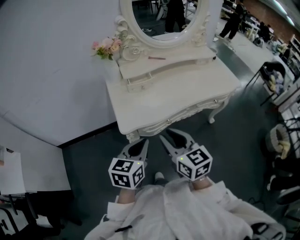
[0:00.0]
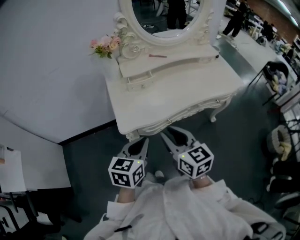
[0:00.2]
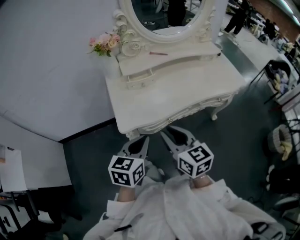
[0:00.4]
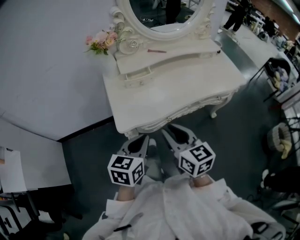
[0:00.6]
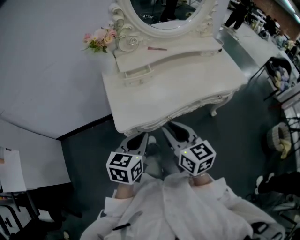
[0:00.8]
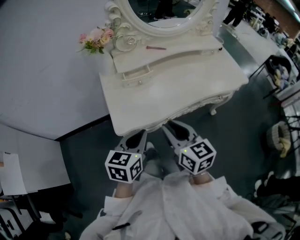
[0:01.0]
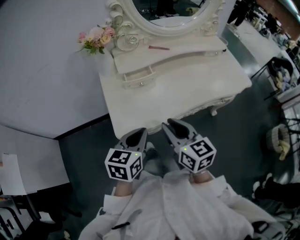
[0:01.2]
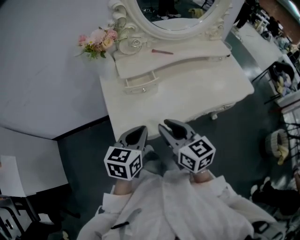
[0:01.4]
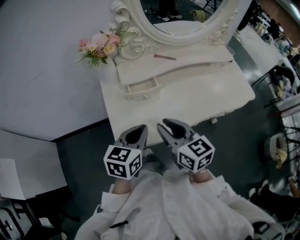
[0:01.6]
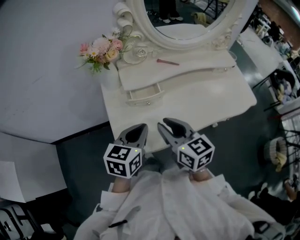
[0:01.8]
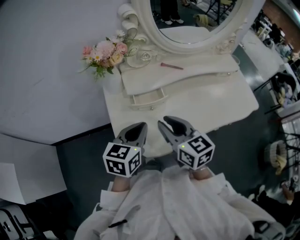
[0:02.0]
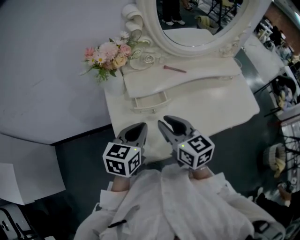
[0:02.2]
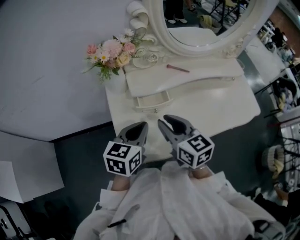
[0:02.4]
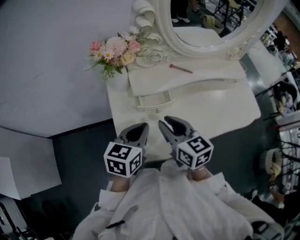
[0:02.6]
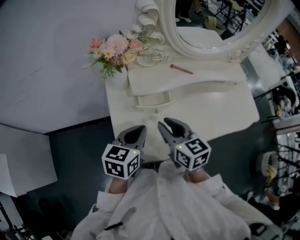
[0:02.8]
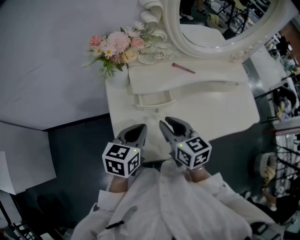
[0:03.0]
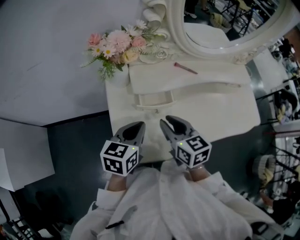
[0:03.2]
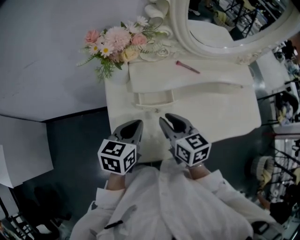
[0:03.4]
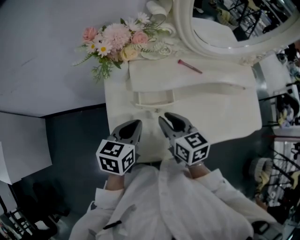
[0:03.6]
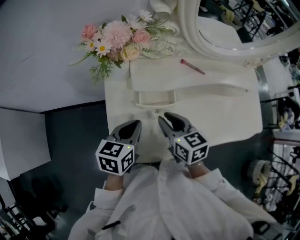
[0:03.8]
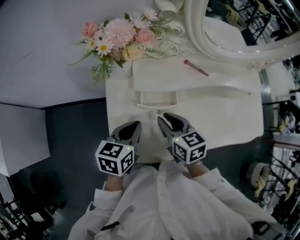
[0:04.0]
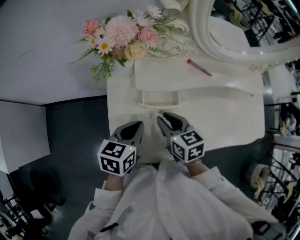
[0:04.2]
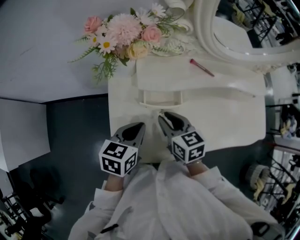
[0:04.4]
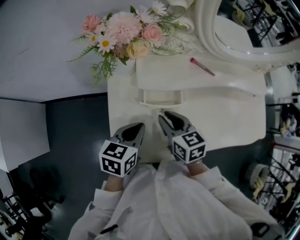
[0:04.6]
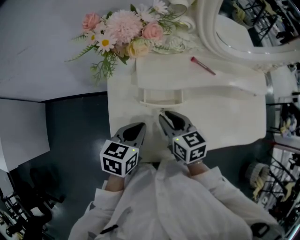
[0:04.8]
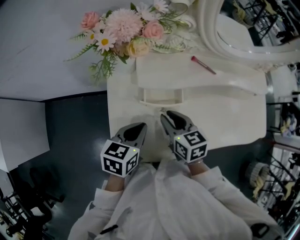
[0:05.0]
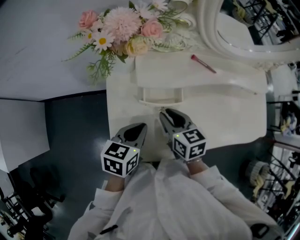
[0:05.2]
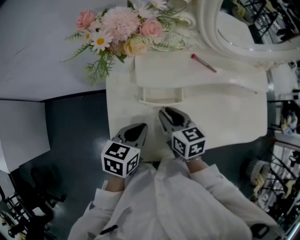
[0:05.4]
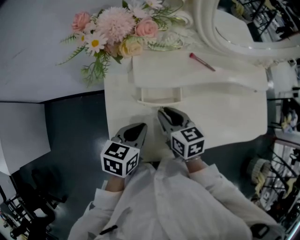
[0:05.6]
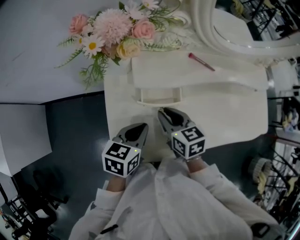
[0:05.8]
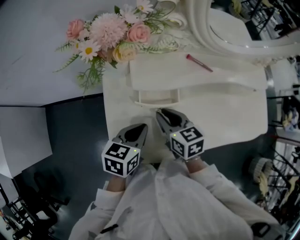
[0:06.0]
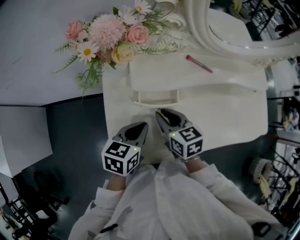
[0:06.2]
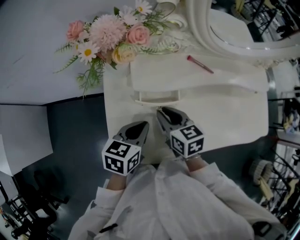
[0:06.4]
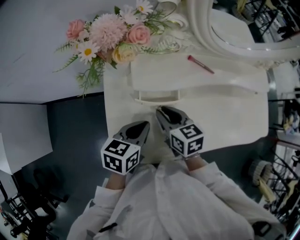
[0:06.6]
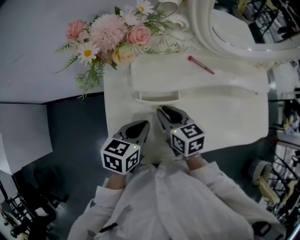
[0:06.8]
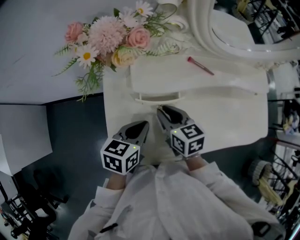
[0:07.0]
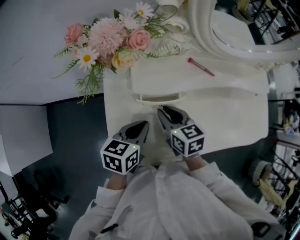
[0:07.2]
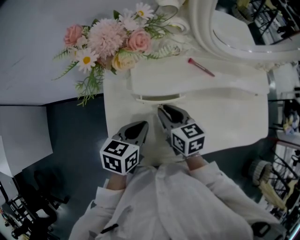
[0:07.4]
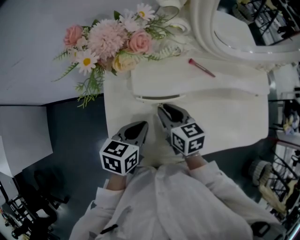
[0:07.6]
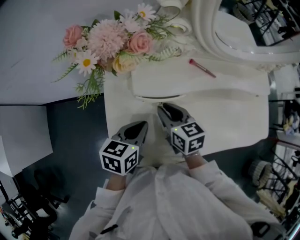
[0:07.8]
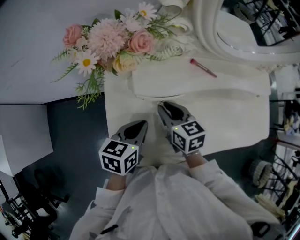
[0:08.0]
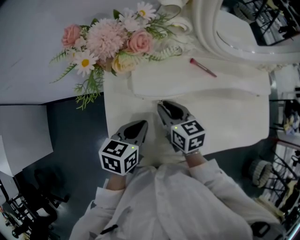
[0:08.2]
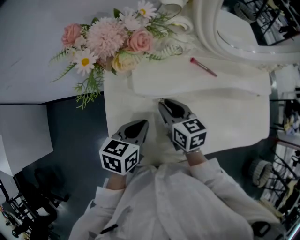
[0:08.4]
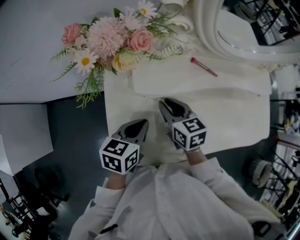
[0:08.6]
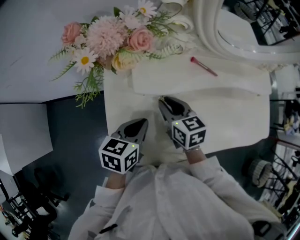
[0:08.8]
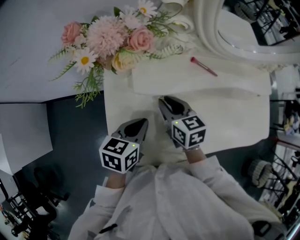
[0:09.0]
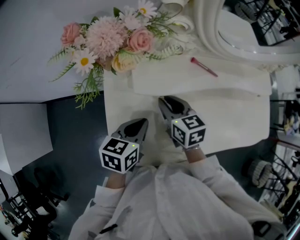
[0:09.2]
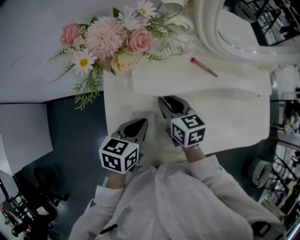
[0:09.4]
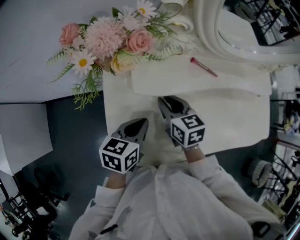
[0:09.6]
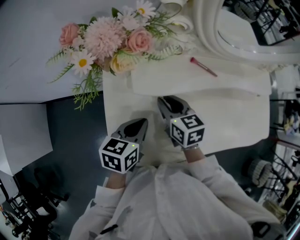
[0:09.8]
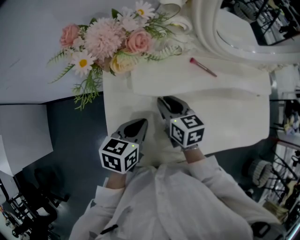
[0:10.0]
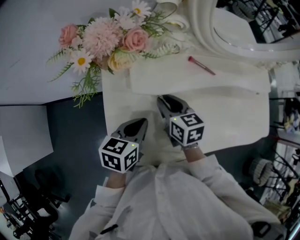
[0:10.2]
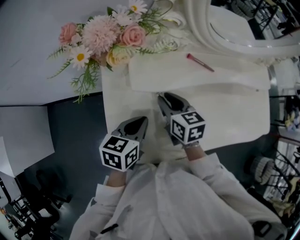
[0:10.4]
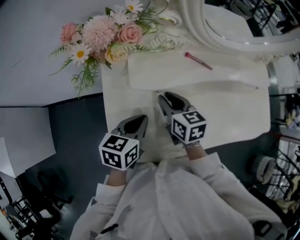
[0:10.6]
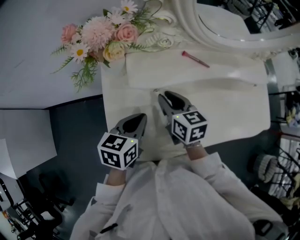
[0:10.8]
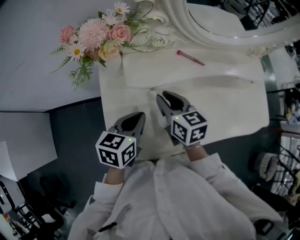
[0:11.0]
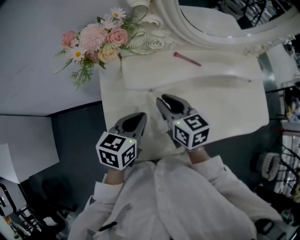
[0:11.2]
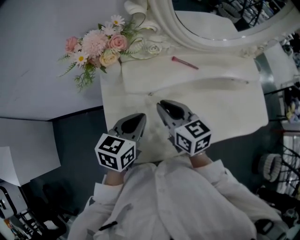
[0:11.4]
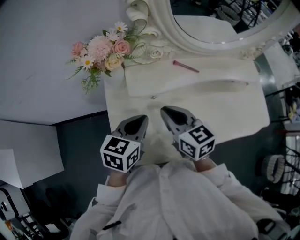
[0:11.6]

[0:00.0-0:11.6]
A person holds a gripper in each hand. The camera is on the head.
0:00.0 to 0:01.4: Both grippers travel together forward, roughly 15 cm.
0:01.4 to 0:02.8: The two grippers go roughly 15 cm forward.
0:02.8 to 0:04.4: The left gripper is displaced downward by roughly 5 cm, while the right gripper shifts some 10 cm downward and forward.
0:04.4 to 0:07.2: The grippers stay close to where they were, moving slightly.
0:07.2 to 0:08.8: There are only small adjustments of the grippers.
0:08.8 to 0:10.2: Both grippers stay about where they are.
0:10.2 to 0:11.6: The left gripper moves upward, some 5 cm, while the right gripper heads upward and backward, covering roughly 10 cm.

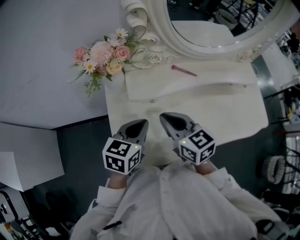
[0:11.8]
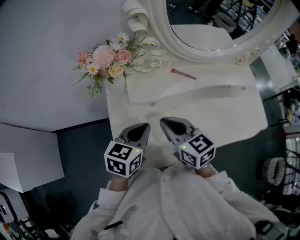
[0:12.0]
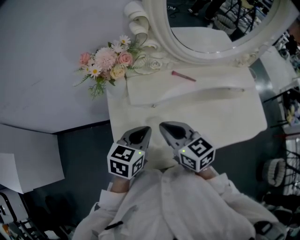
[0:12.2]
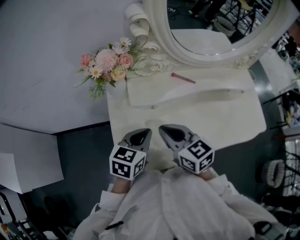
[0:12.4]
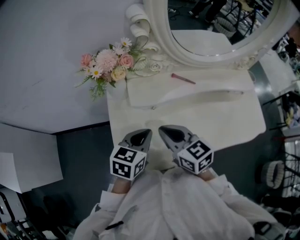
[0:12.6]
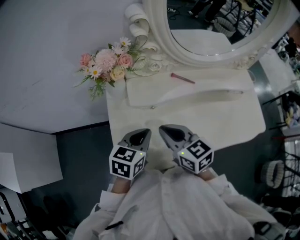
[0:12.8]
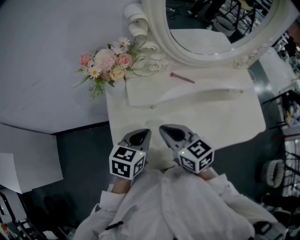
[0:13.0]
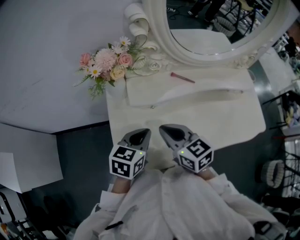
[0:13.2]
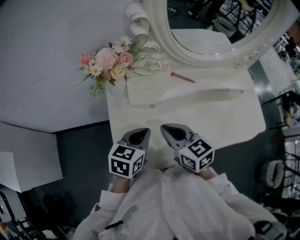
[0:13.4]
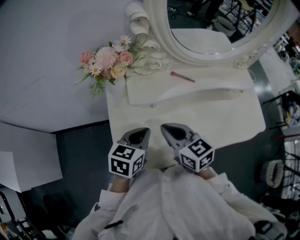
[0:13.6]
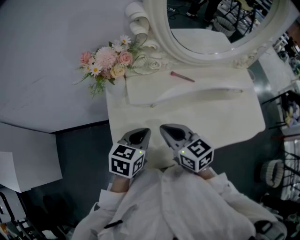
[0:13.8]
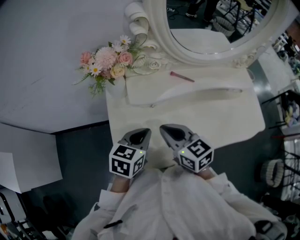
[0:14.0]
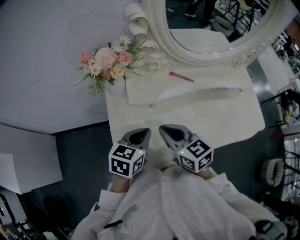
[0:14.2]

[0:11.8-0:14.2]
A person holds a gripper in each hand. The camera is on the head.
0:11.8 to 0:13.0: The grippers make only small movements.
0:13.0 to 0:14.2: The two grippers keep their place.

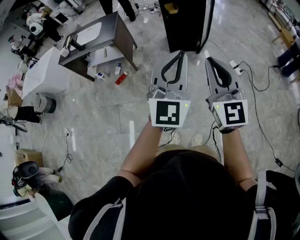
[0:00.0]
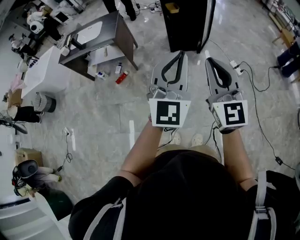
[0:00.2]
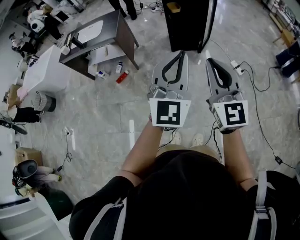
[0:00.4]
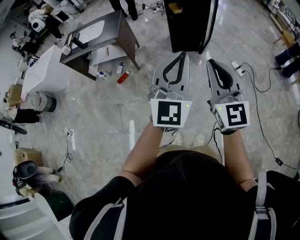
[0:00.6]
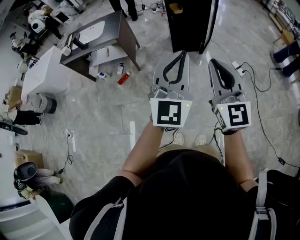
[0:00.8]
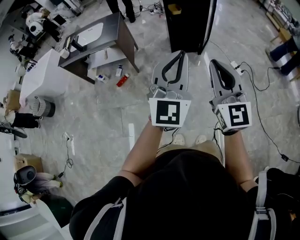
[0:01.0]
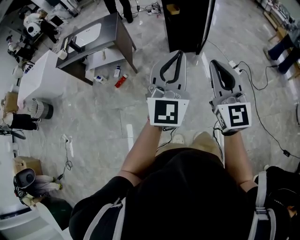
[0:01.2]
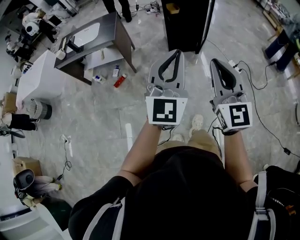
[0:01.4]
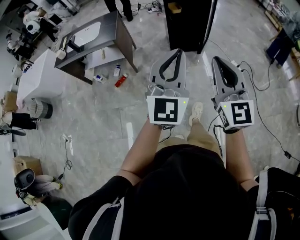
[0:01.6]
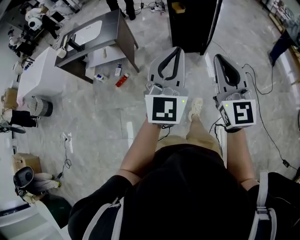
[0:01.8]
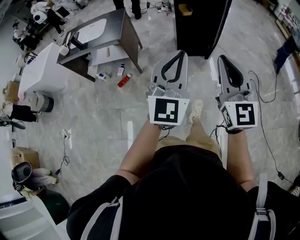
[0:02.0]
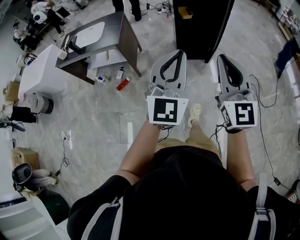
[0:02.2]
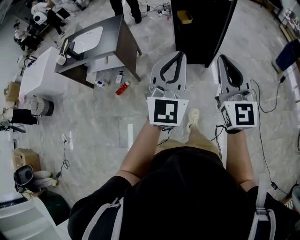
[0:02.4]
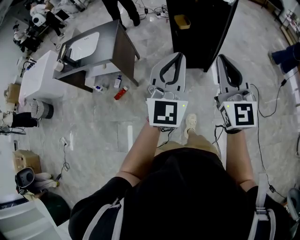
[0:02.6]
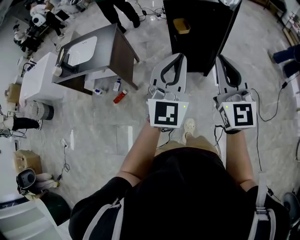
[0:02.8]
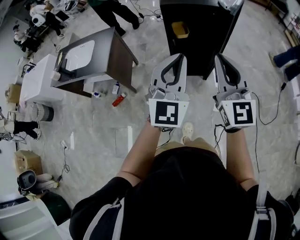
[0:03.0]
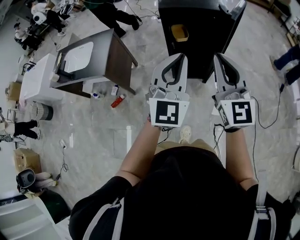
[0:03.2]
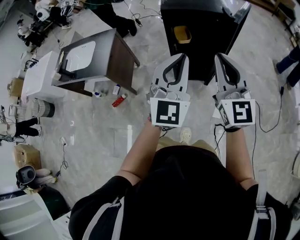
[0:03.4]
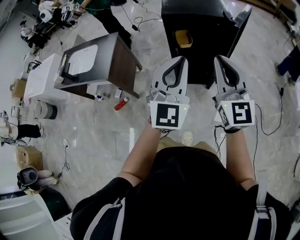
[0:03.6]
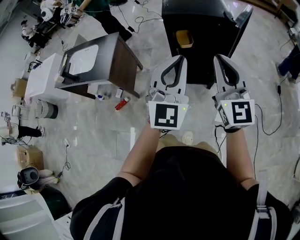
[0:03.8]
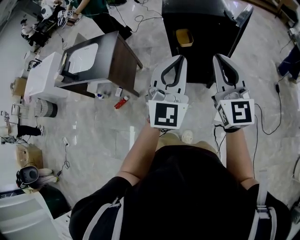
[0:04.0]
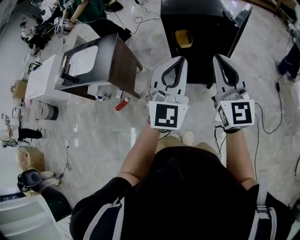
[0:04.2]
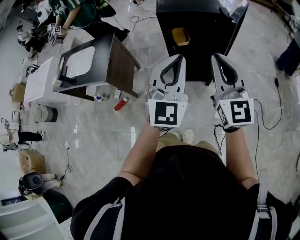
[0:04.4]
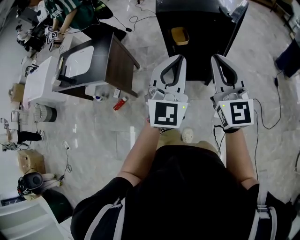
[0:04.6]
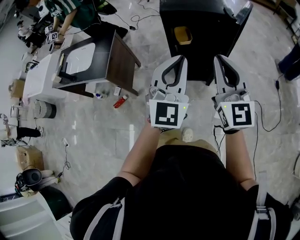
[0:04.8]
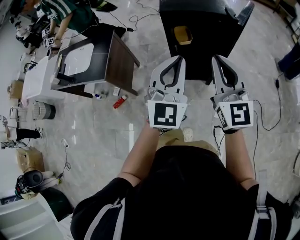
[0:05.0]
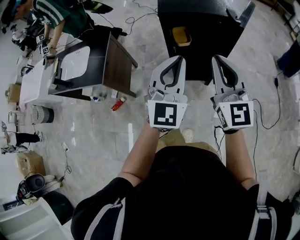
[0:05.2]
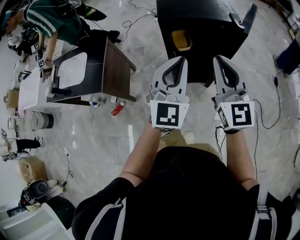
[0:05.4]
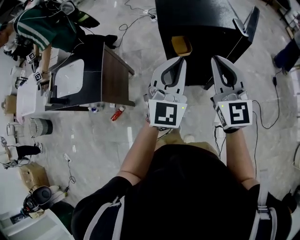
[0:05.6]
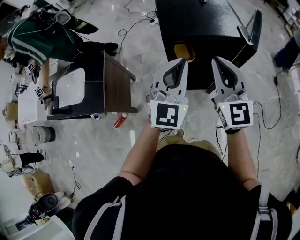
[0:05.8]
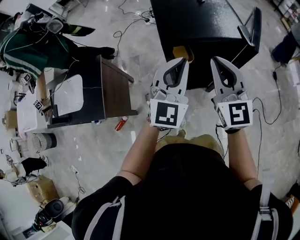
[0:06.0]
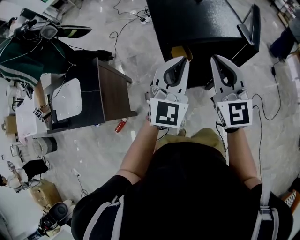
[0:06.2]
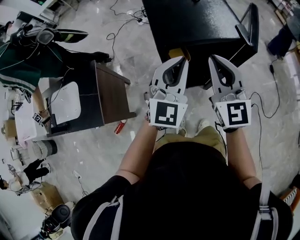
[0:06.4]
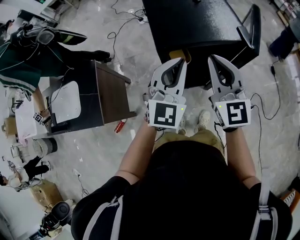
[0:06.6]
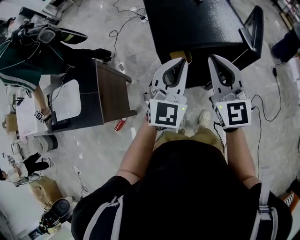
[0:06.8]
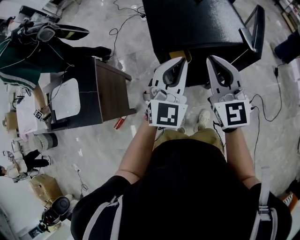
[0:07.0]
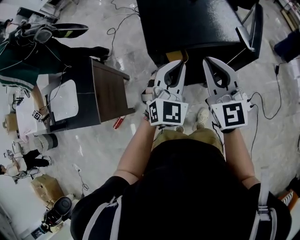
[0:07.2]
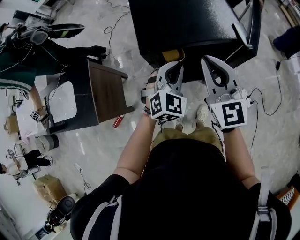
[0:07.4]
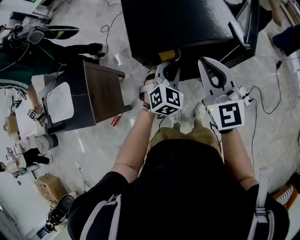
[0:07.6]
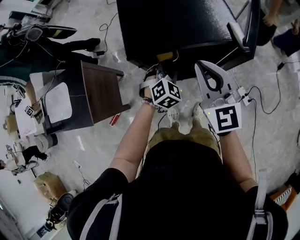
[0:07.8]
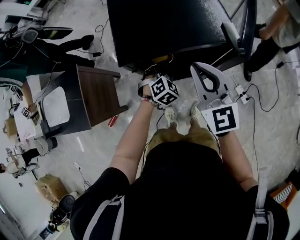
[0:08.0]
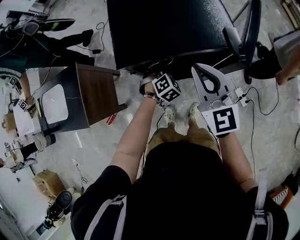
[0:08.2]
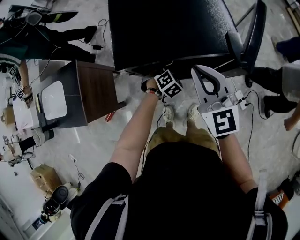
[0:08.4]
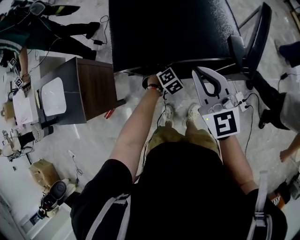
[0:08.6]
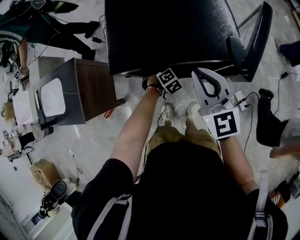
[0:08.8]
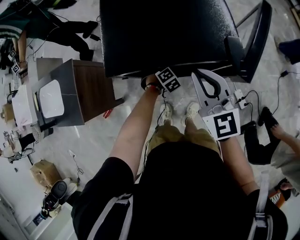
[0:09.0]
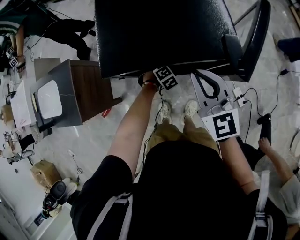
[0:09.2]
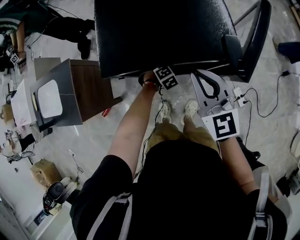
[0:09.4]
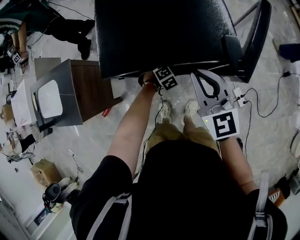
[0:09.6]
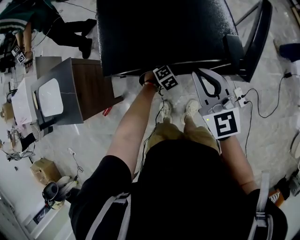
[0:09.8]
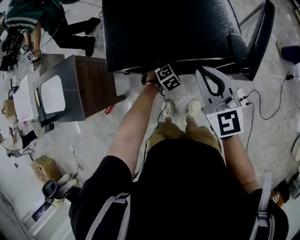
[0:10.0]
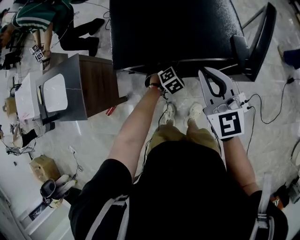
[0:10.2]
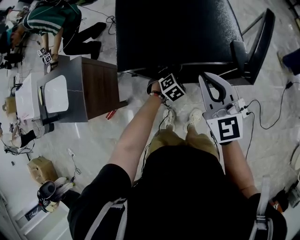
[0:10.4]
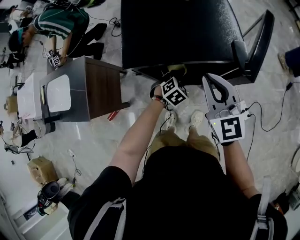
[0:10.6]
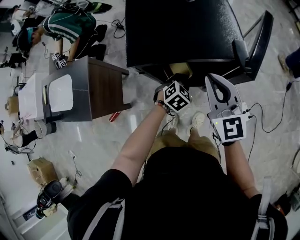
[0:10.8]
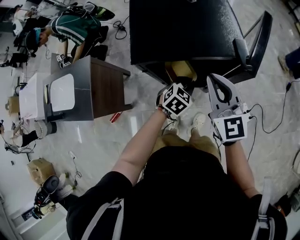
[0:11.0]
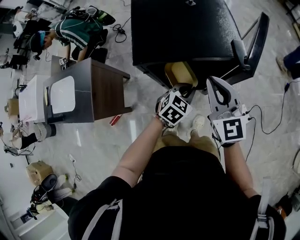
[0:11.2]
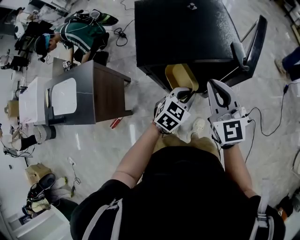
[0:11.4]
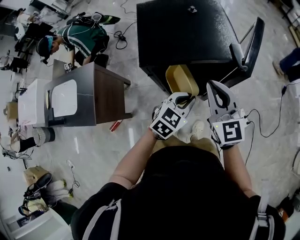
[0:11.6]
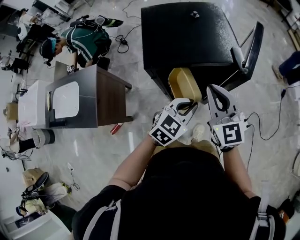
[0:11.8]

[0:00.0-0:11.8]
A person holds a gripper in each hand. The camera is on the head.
0:00.0 to 0:01.4: The two grippers go about 10 cm to the left.
0:01.4 to 0:03.0: The two grippers travel together, forward, about 50 cm.
0:03.0 to 0:04.4: Both grippers move forward, some 10 cm.
0:04.4 to 0:06.0: Both grippers move forward, approximately 30 cm.
0:06.0 to 0:07.4: The left gripper goes roughly 15 cm downward and forward, and changes its angle by about 30 degrees. Meanwhile the right gripper goes some 10 cm forward.
0:07.4 to 0:08.8: The right gripper heads forward, to the right and downward, covering some 10 cm; the left gripper shifts some 30 cm downward, tilts its fingers approximately 40 degrees downward, and opens.
0:08.8 to 0:10.4: The left gripper shifts by about 5 cm, and closes up.
0:10.4 to 0:11.8: The left gripper is displaced upward and backward by about 30 cm, and tilts its fingers some 30 degrees upward. Meanwhile the right gripper shifts roughly 10 cm backward.
